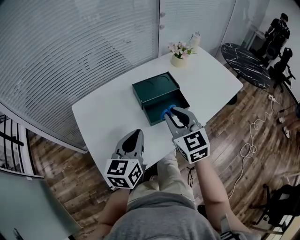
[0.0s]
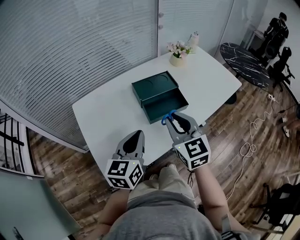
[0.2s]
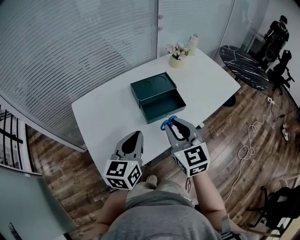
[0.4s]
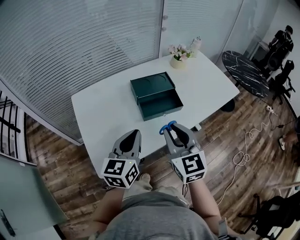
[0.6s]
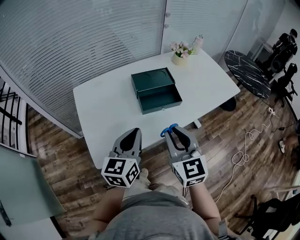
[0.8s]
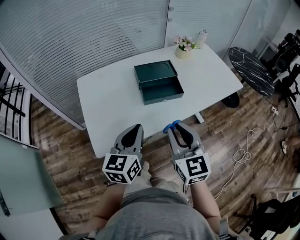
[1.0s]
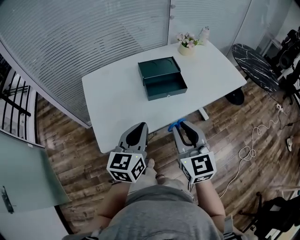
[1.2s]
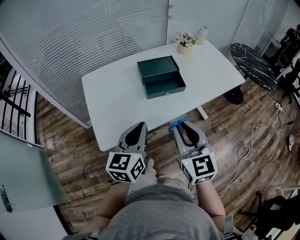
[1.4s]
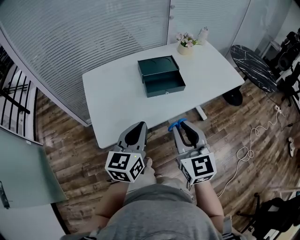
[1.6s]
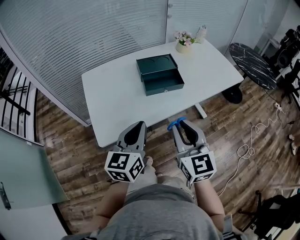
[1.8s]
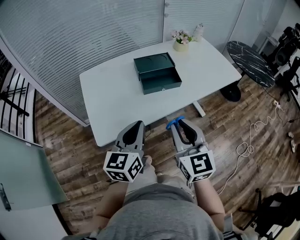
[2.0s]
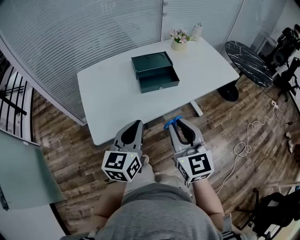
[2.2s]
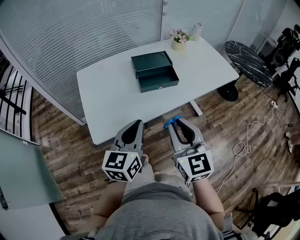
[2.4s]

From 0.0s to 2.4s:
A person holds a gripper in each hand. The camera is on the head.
From 0.0s to 1.2s: The two grippers go roughly 15 cm backward.
From 1.2s to 2.4s: The grippers make only small movements.

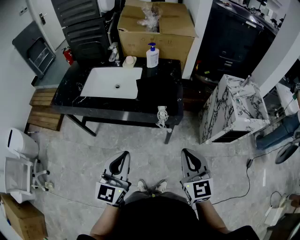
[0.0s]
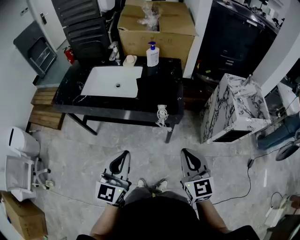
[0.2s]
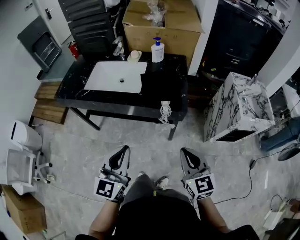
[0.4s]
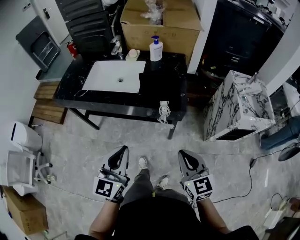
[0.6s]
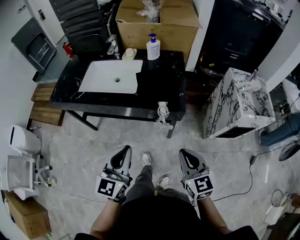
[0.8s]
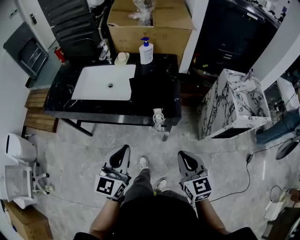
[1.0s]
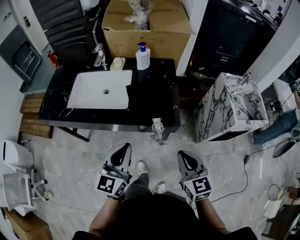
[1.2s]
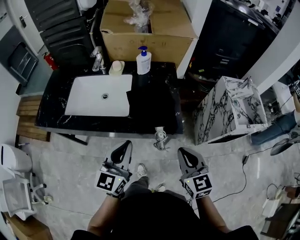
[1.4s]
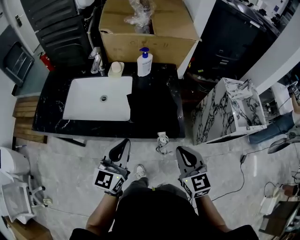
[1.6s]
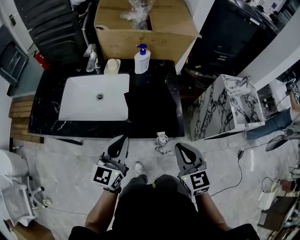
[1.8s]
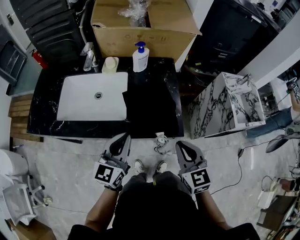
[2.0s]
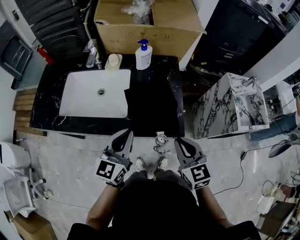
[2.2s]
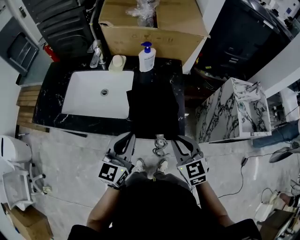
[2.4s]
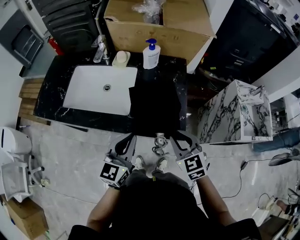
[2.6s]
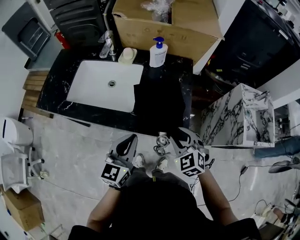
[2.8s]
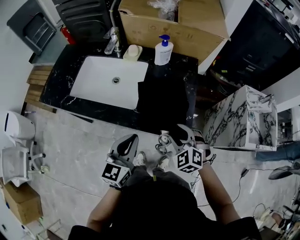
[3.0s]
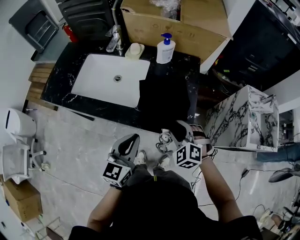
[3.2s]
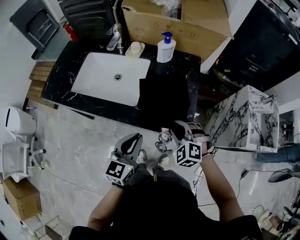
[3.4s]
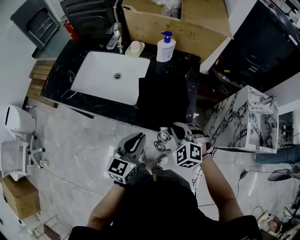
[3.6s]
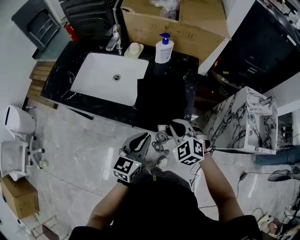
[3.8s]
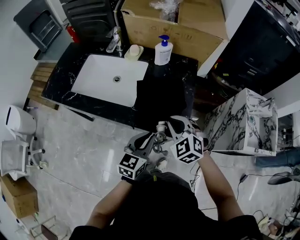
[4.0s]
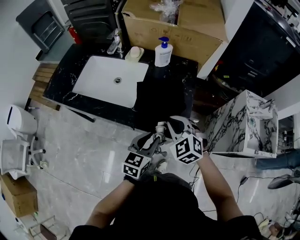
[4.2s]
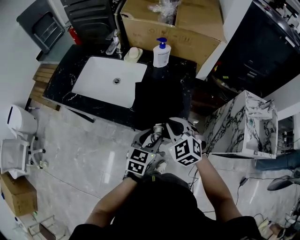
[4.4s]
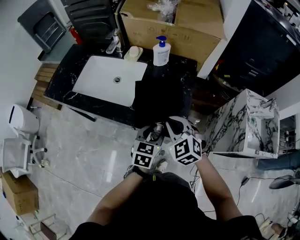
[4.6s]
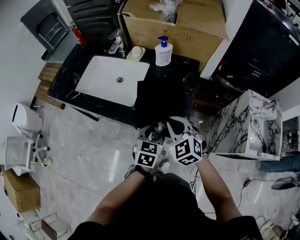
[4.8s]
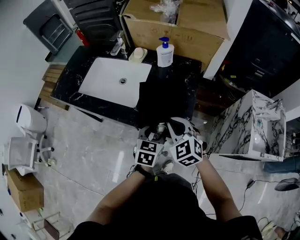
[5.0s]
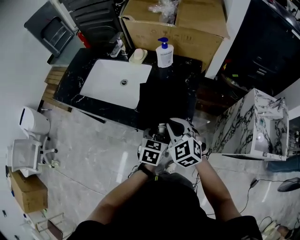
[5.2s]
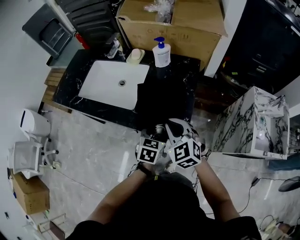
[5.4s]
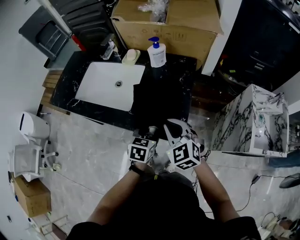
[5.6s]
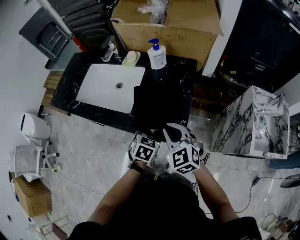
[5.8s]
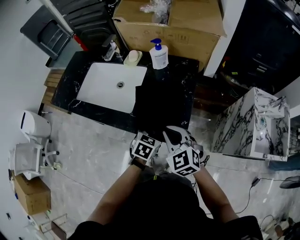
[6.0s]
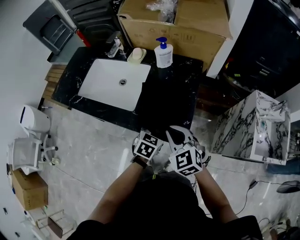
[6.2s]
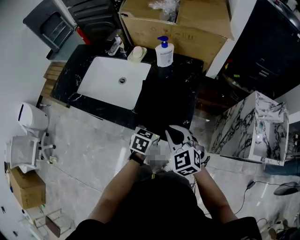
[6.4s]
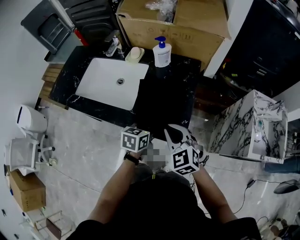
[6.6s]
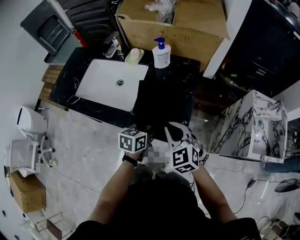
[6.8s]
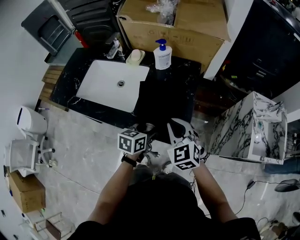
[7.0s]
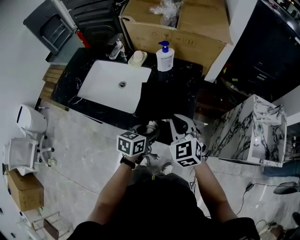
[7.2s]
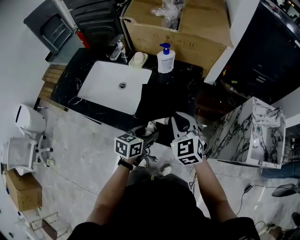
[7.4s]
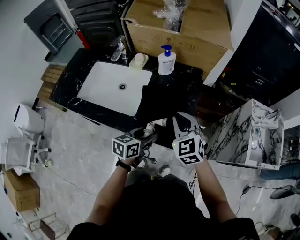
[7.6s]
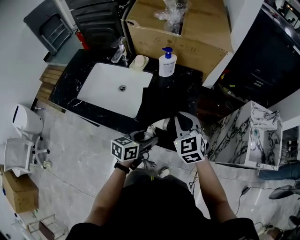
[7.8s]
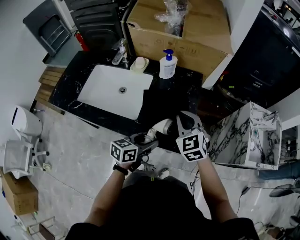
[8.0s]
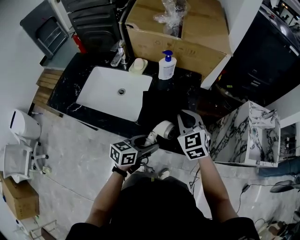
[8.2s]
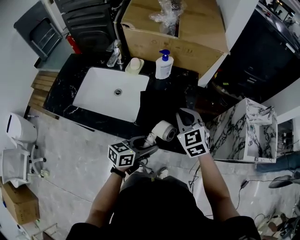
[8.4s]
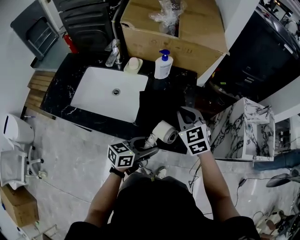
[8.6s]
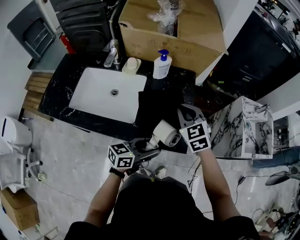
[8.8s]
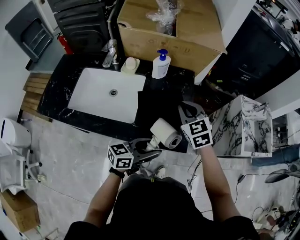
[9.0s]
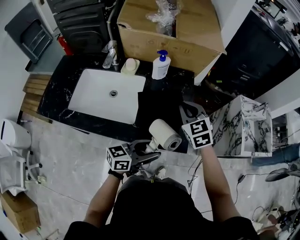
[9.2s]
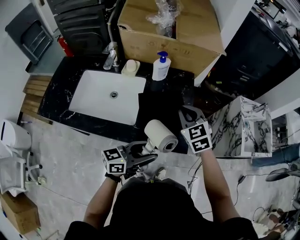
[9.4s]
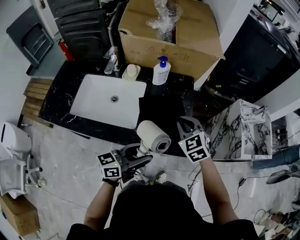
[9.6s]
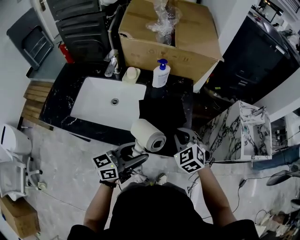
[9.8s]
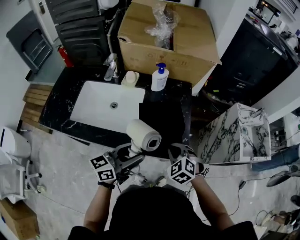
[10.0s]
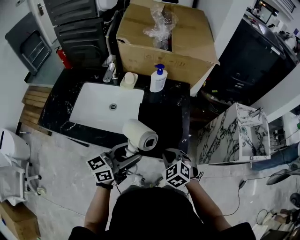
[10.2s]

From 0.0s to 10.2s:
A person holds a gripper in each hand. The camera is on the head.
From 0.0s to 1.4s: The two grippers go approximately 15 cm forward.
From 1.4s to 3.0s: The left gripper heads downward, covering about 5 cm, while the right gripper moves forward and downward, approximately 15 cm, rolls counterclockwise, seen from behind, by about 40 degrees, and opens up.
From 3.0s to 4.4s: The right gripper changes place by roughly 5 cm, and closes its fingers. The left gripper travels to the right and downward by about 15 cm, and opens its fingers.
From 4.4s to 5.8s: The left gripper travels downward by about 5 cm, swivels about 20 degrees, and opens its fingers.
From 5.8s to 7.2s: The right gripper shifts by approximately 5 cm; the left gripper changes its angle by some 30 degrees.
From 7.2s to 8.8s: The left gripper moves backward, roughly 5 cm, and swivels about 30 degrees. The right gripper shifts some 5 cm forward.
From 8.8s to 10.2s: The right gripper goes approximately 15 cm backward and downward, and swivels approximately 20 degrees; the left gripper heads to the left and upward, covering some 15 cm.

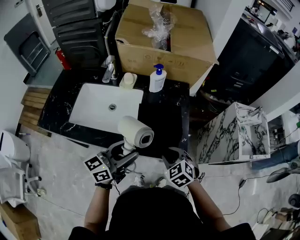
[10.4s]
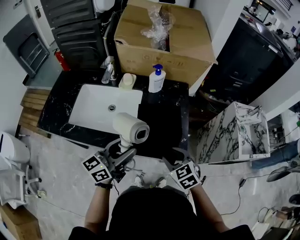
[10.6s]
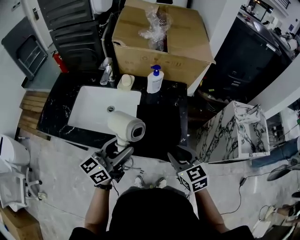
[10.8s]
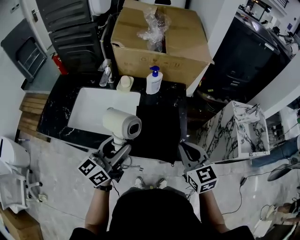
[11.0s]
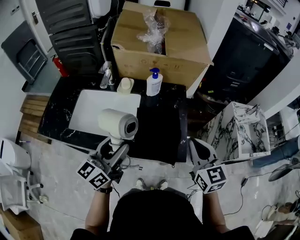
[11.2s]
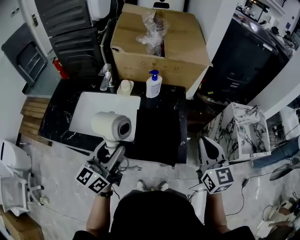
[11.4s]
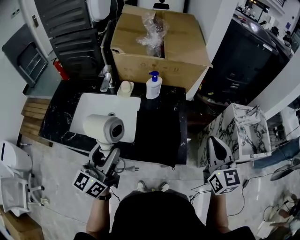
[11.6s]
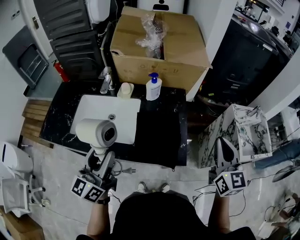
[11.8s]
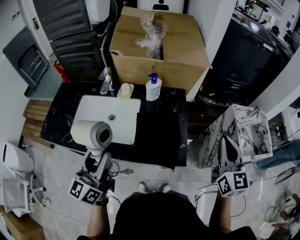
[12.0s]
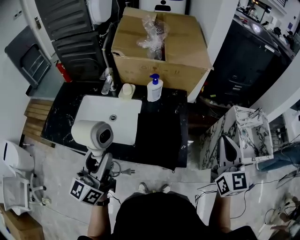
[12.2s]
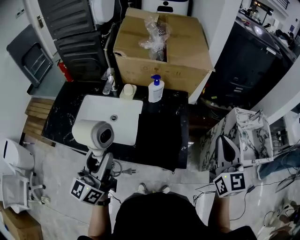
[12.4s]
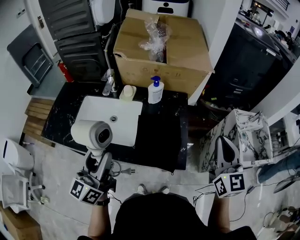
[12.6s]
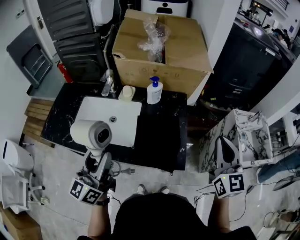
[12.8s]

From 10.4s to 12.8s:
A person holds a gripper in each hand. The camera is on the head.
From 10.4s to 11.6s: The left gripper shifts some 10 cm upward and to the left, and rotates about 30 degrees. Meanwhile the right gripper shifts approximately 25 cm upward and to the right, tips its fingers upward by roughly 40 degrees, and closes up.
From 11.6s to 12.8s: There are only small adjustments of the grippers.

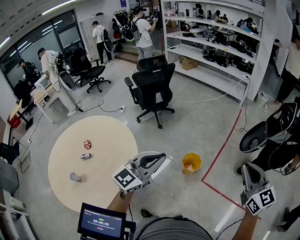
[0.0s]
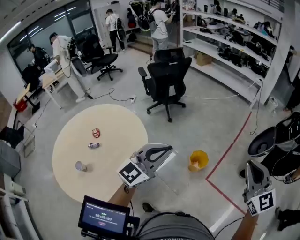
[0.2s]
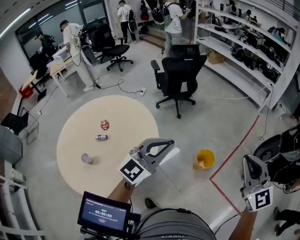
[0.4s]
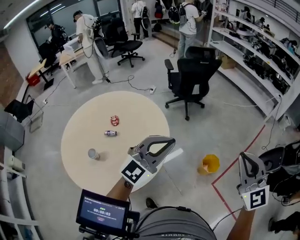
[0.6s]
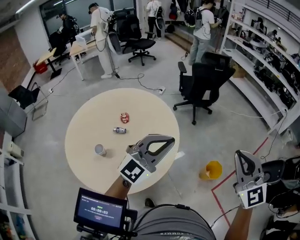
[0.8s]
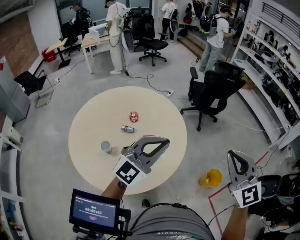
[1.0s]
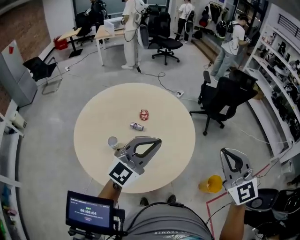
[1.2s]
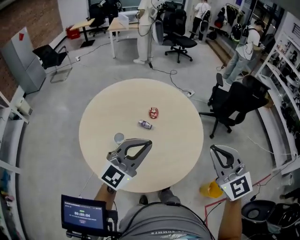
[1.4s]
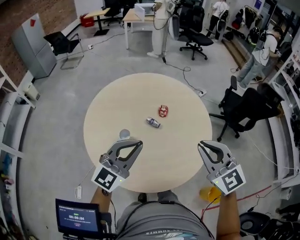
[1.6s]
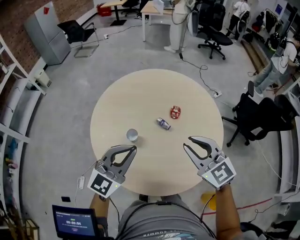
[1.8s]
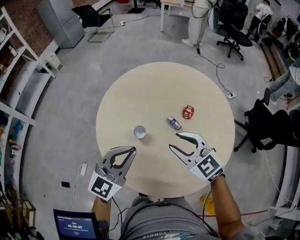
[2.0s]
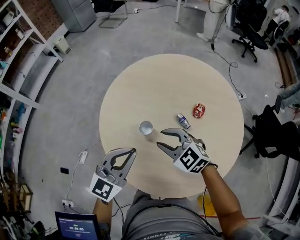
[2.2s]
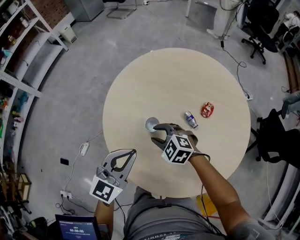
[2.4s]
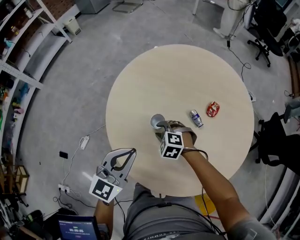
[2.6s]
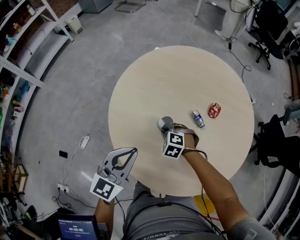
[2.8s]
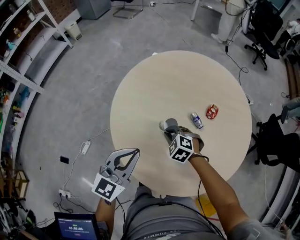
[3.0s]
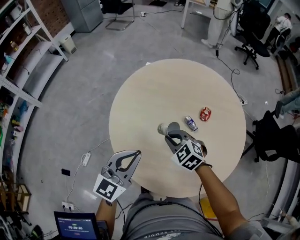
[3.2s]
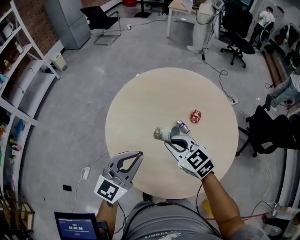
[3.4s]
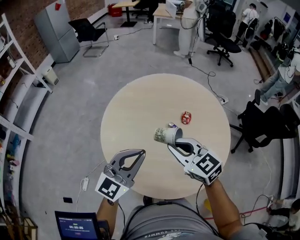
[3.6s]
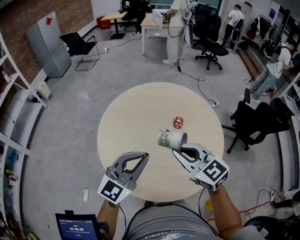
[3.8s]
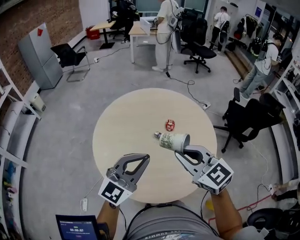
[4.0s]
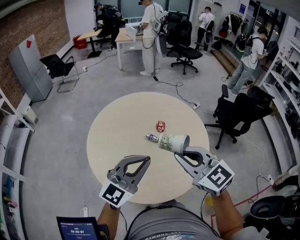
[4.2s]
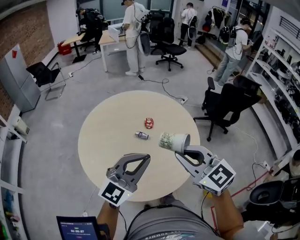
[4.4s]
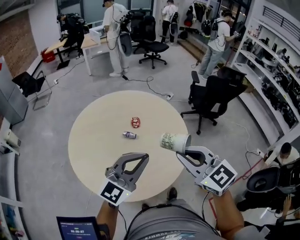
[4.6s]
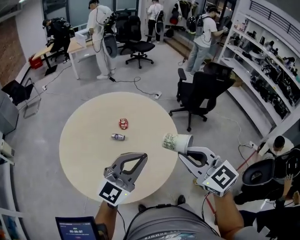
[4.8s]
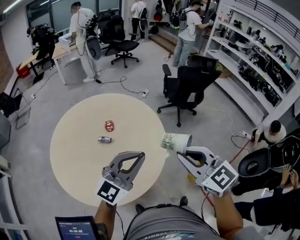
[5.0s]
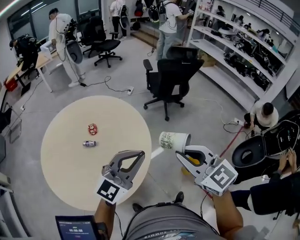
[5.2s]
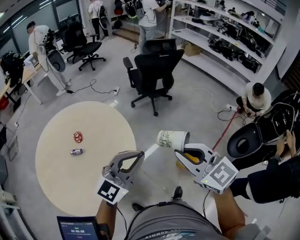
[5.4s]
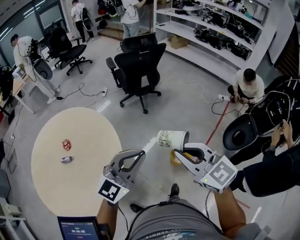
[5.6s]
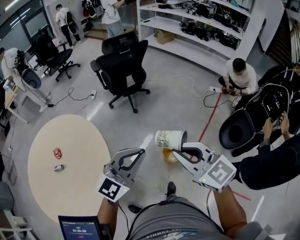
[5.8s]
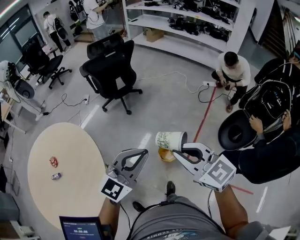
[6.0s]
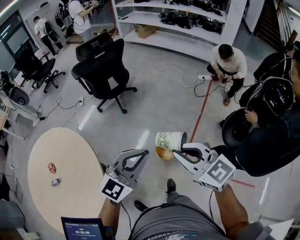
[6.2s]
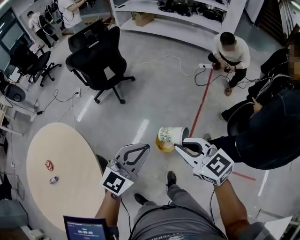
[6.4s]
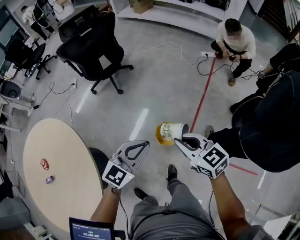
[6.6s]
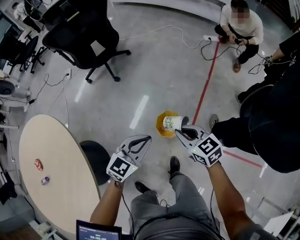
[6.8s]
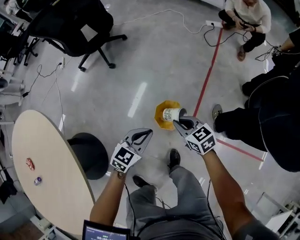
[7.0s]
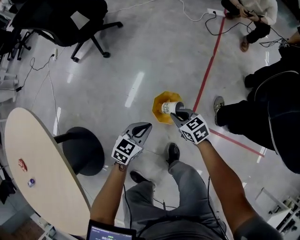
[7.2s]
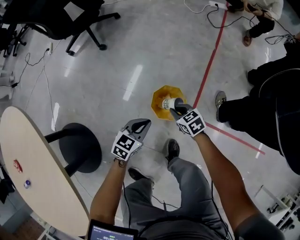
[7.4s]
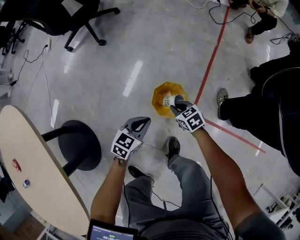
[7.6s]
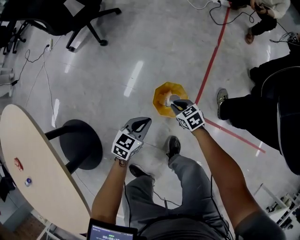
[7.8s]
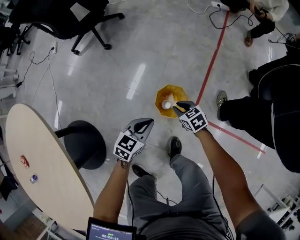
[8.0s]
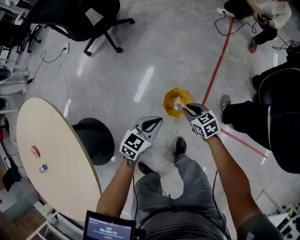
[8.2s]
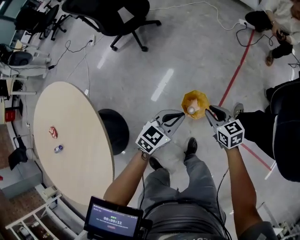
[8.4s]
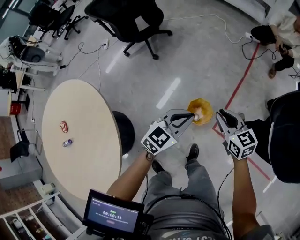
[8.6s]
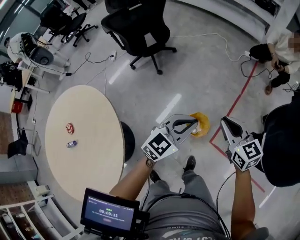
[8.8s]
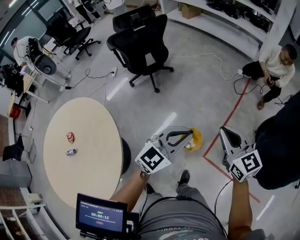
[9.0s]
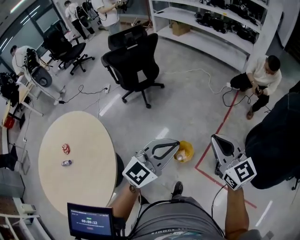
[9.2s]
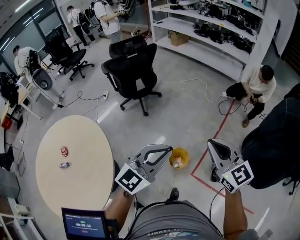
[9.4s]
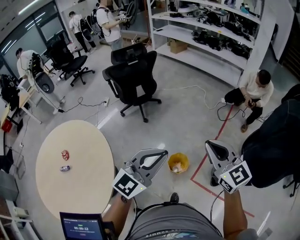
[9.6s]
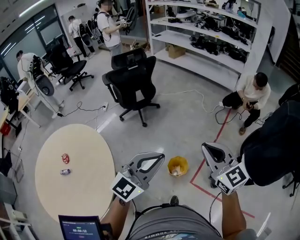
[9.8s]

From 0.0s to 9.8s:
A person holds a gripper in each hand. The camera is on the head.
From 0.0s to 1.4s: Both grippers are carried some 60 cm. The left gripper swivels roughly 50 degrees. The right gripper swivels approximately 60 degrees.
From 1.4s to 2.8s: The right gripper heads downward, covering some 50 cm, and angles its fingers downward, by roughly 60 degrees, while the left gripper ends up approximately 30 cm from where it was, and rotates about 50 degrees.
From 2.8s to 4.2s: The left gripper ends up roughly 30 cm from where it was, and swivels about 50 degrees, while the right gripper goes roughly 40 cm upward, and angles its fingers upward, by about 50 degrees.
From 4.2s to 5.6s: Both grippers are carried roughly 50 cm. The left gripper swivels approximately 40 degrees. The right gripper rotates roughly 40 degrees.
From 5.6s to 7.0s: The grippers both shift downward by about 50 cm. The left gripper swivels about 40 degrees, while the right gripper turns by roughly 40 degrees.
From 7.0s to 8.4s: The right gripper moves some 25 cm downward and comes back. Meanwhile the left gripper moves some 20 cm downward and comes back.
From 8.4s to 9.8s: The two grippers go about 50 cm upward. The left gripper swivels some 40 degrees. Meanwhile the right gripper tilts its fingers approximately 30 degrees upward.
